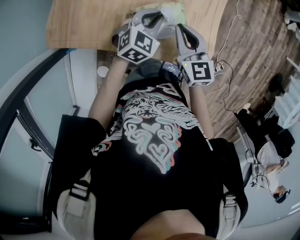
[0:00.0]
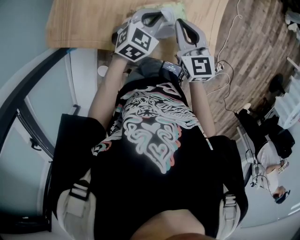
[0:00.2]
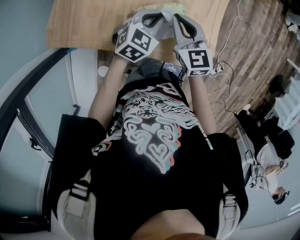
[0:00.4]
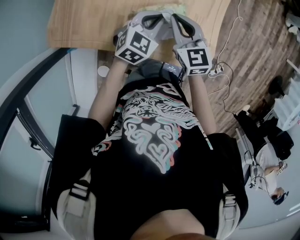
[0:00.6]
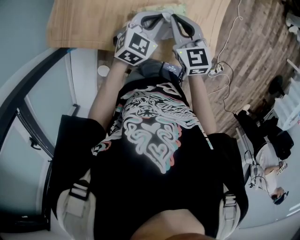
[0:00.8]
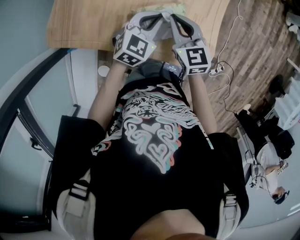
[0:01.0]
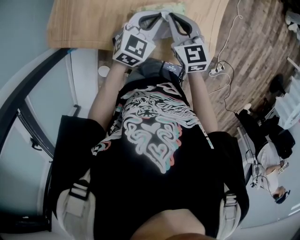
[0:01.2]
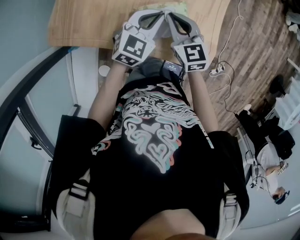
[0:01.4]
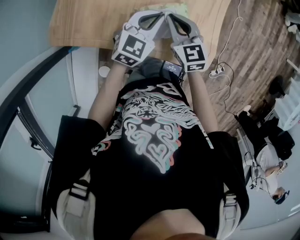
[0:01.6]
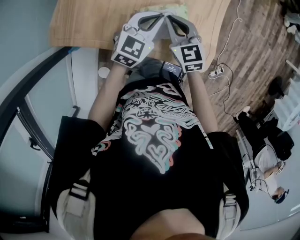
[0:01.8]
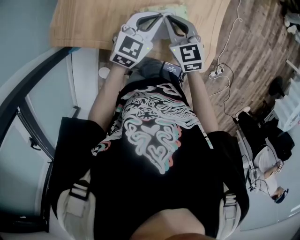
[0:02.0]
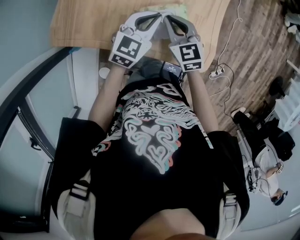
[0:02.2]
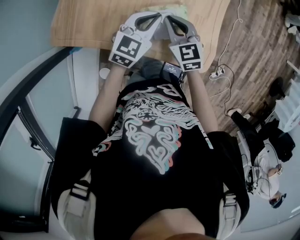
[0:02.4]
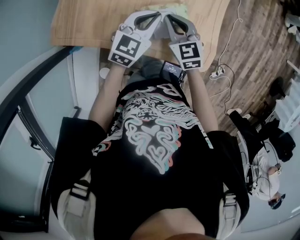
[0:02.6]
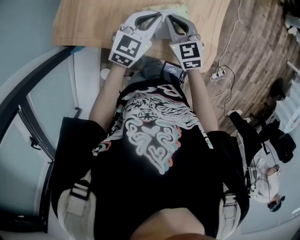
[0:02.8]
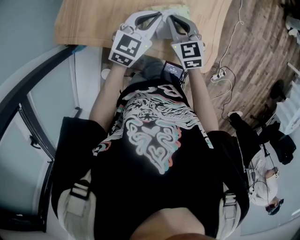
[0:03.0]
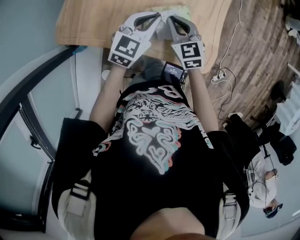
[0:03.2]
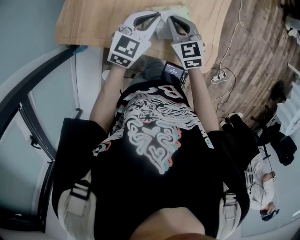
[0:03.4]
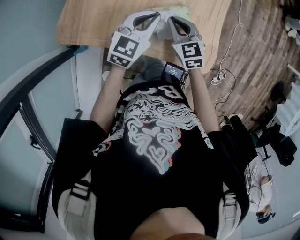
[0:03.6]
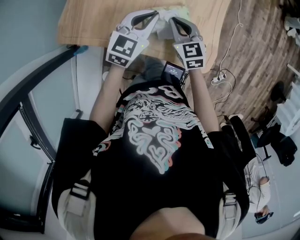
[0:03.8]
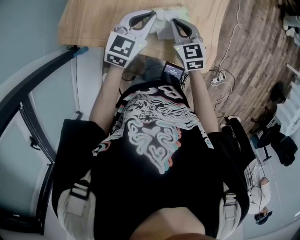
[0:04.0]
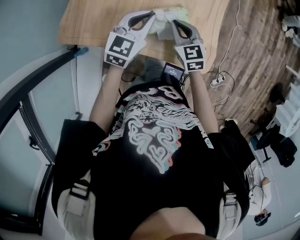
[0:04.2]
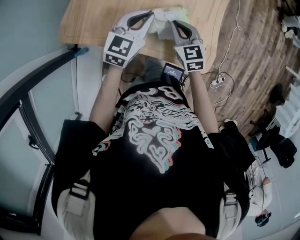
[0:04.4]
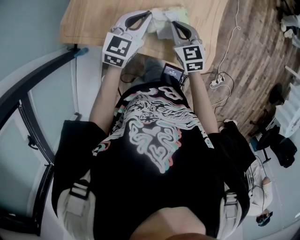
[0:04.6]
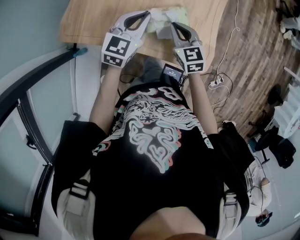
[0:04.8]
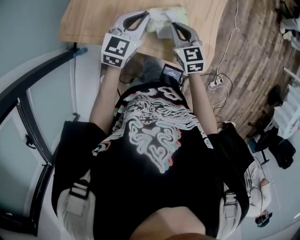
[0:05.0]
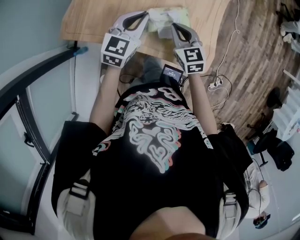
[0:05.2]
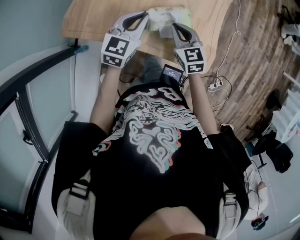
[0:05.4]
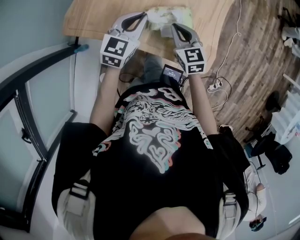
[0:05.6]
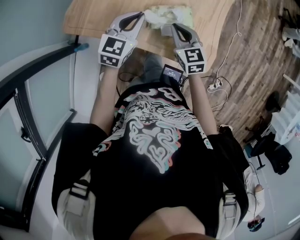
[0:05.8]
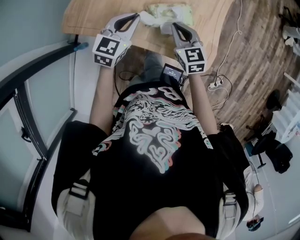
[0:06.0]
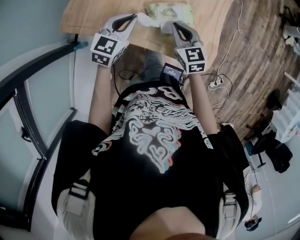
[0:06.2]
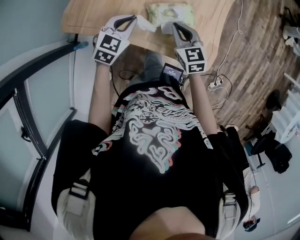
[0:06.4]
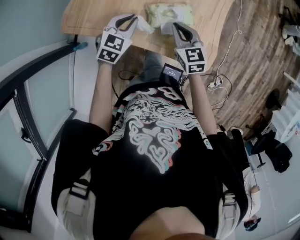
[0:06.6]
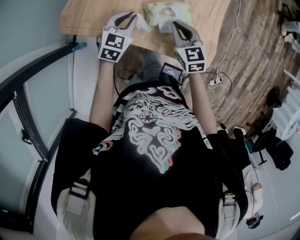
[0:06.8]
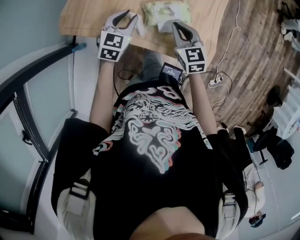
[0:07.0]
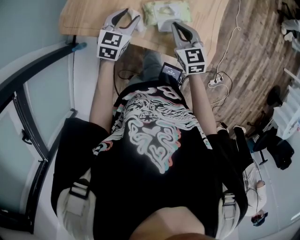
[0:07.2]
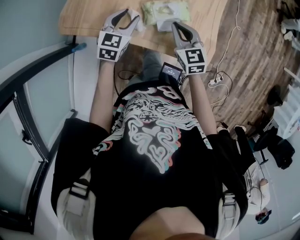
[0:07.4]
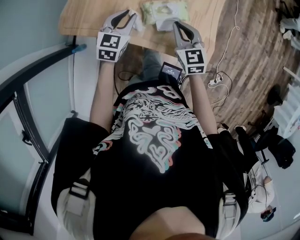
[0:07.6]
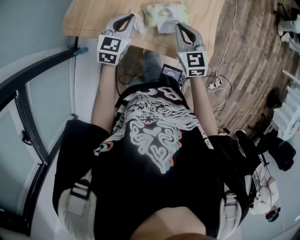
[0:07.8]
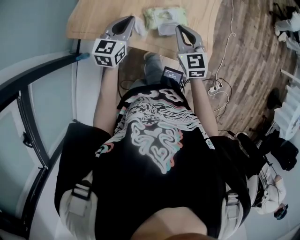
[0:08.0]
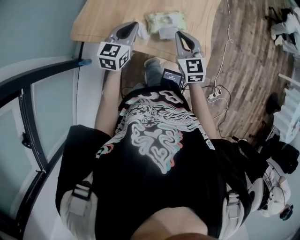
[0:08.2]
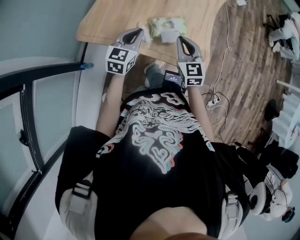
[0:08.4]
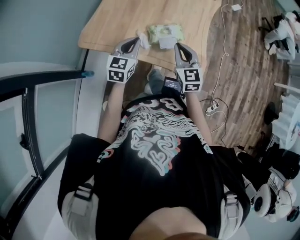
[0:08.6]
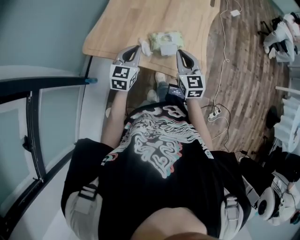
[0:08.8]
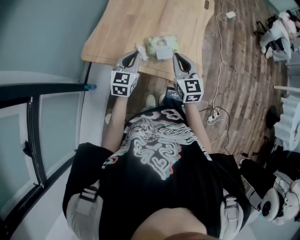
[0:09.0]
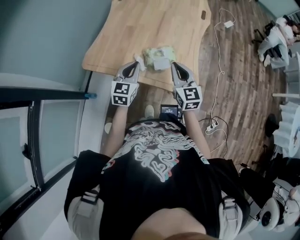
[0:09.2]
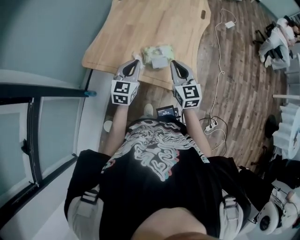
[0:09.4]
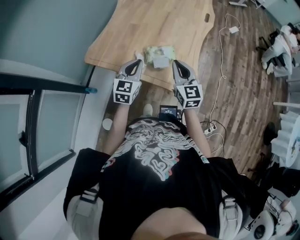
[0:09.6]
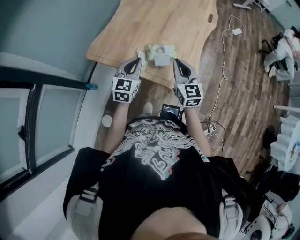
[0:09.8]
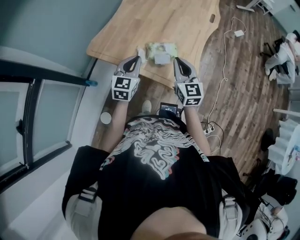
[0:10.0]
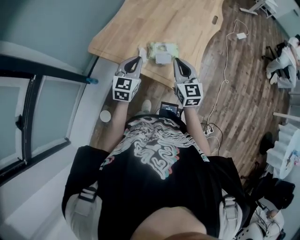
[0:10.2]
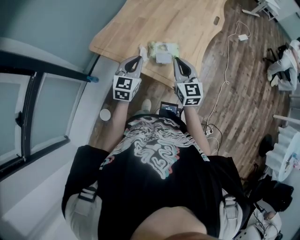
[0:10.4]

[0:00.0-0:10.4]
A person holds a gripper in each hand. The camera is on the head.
0:00.0 to 0:01.4: The right gripper shifts by roughly 5 cm.
0:01.4 to 0:03.0: The grippers stay close to where they were, moving slightly.
0:03.0 to 0:04.4: The left gripper changes place by about 5 cm.
0:04.4 to 0:06.0: The left gripper goes roughly 5 cm to the left.
0:06.0 to 0:07.4: The left gripper moves downward, about 5 cm, and opens its fingers.
0:07.4 to 0:09.0: Both grippers move upward and backward, about 20 cm. The left gripper closes up.
0:09.0 to 0:10.4: The left gripper shifts by about 5 cm.

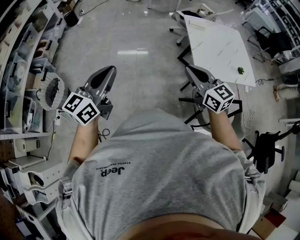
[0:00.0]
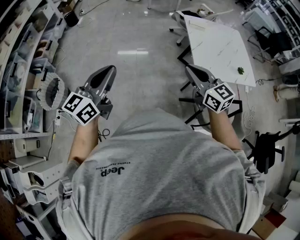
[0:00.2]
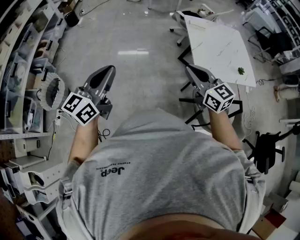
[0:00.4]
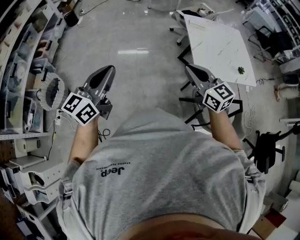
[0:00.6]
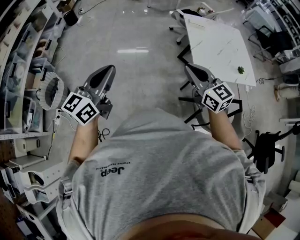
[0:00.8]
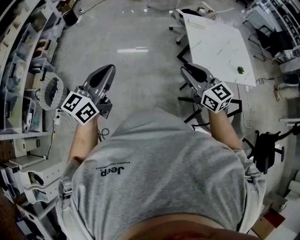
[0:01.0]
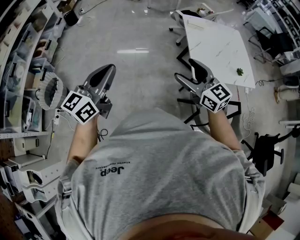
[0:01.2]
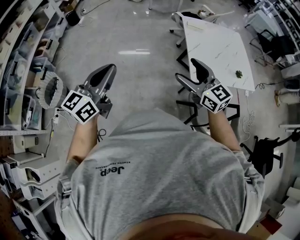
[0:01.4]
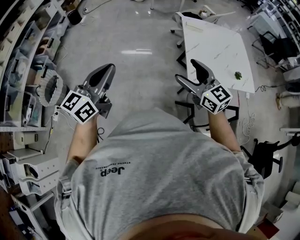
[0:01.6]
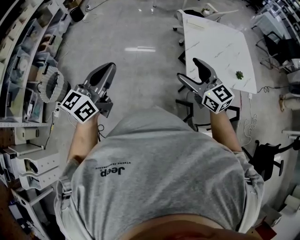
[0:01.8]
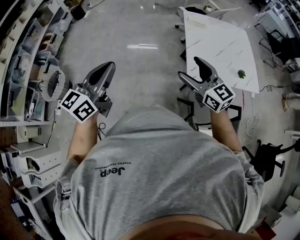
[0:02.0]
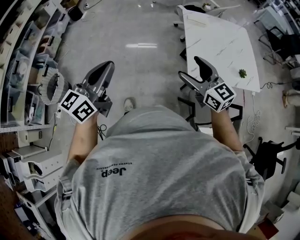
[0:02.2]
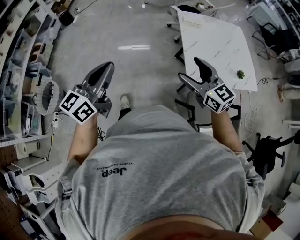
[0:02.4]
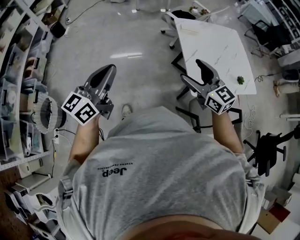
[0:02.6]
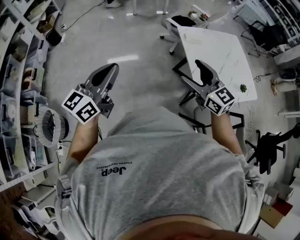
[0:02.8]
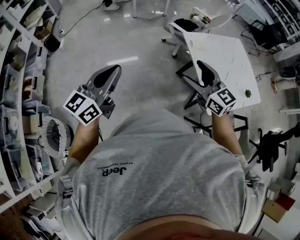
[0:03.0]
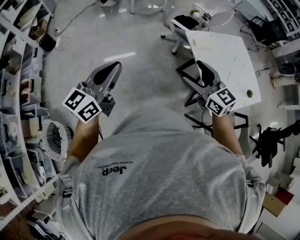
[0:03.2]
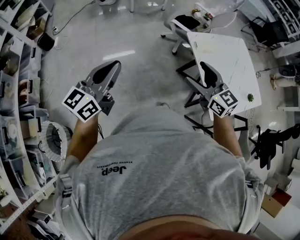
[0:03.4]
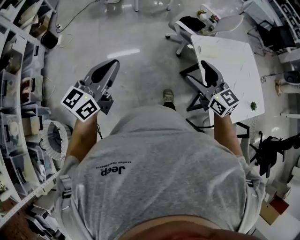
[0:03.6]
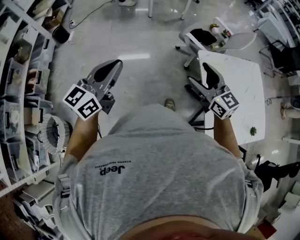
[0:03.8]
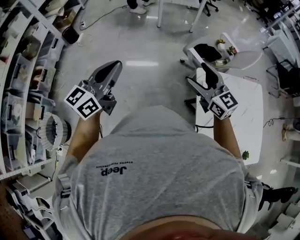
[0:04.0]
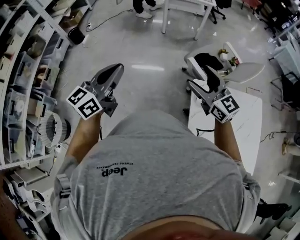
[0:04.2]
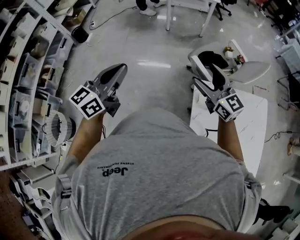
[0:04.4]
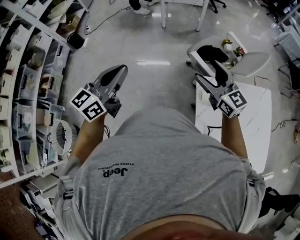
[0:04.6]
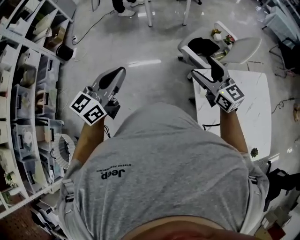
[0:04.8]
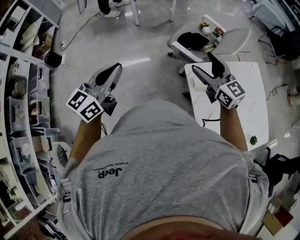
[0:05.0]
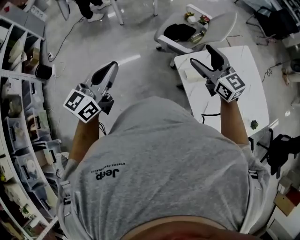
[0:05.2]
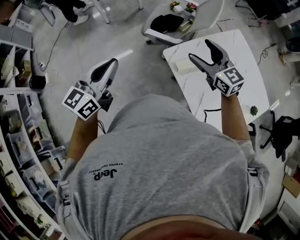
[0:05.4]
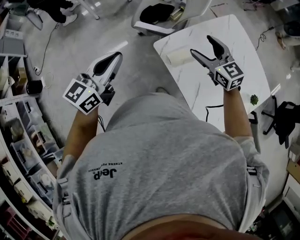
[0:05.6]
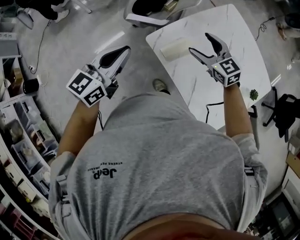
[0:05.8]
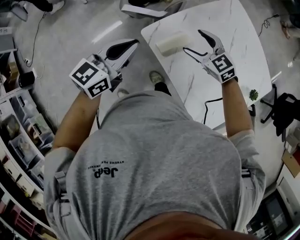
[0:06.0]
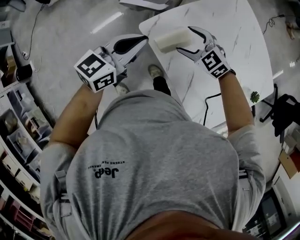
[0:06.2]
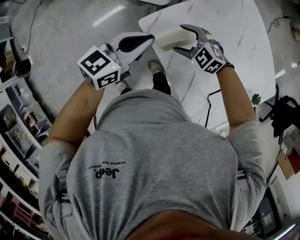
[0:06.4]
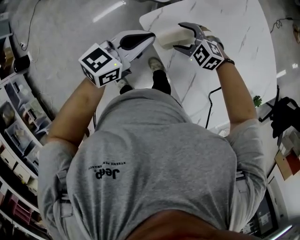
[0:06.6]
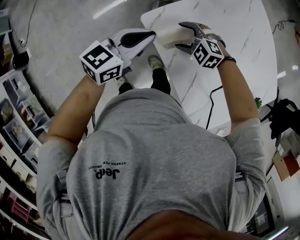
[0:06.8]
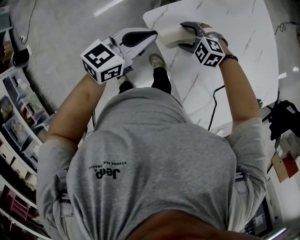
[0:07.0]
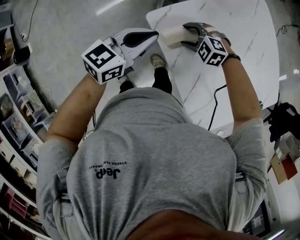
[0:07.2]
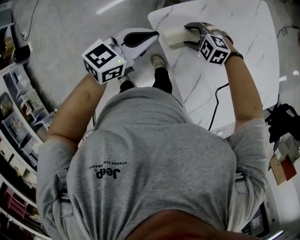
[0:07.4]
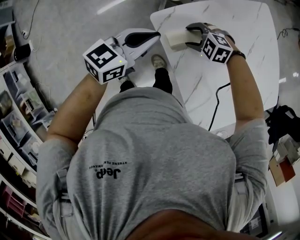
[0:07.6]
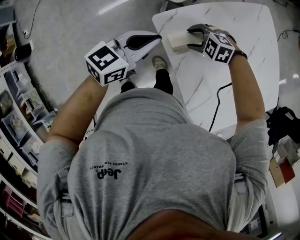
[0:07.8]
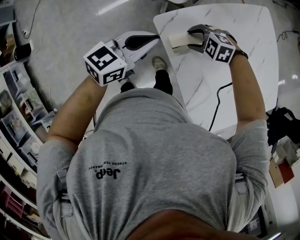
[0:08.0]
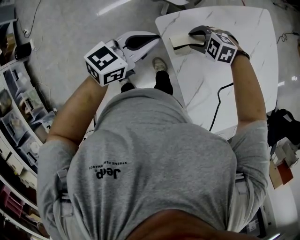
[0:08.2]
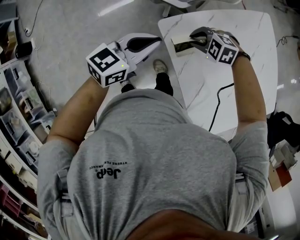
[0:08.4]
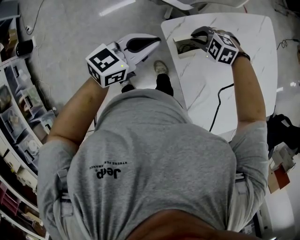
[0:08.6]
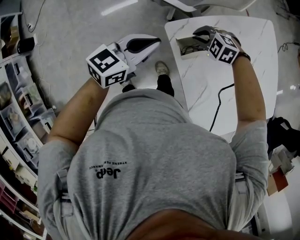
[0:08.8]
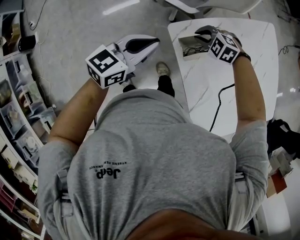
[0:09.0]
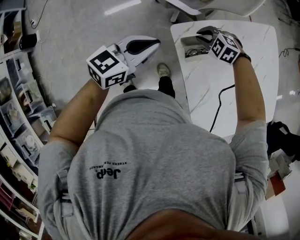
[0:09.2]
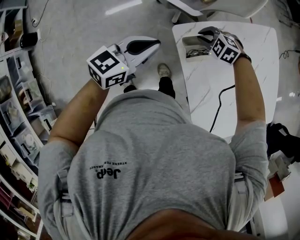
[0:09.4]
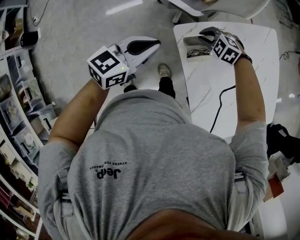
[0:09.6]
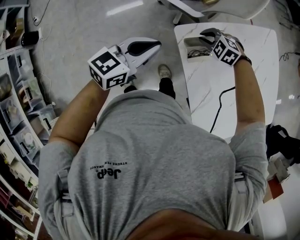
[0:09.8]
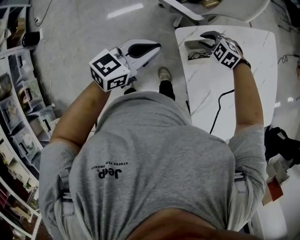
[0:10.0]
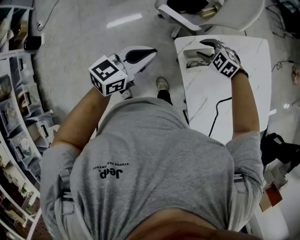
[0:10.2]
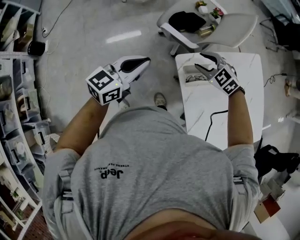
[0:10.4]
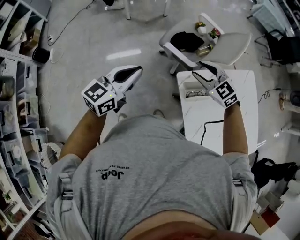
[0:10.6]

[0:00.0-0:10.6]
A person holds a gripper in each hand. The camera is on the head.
0:00.0 to 0:01.6: The two grippers go about 10 cm to the right. The right gripper opens up.
0:01.6 to 0:03.0: The grippers both shift forward by roughly 35 cm.
0:03.0 to 0:04.6: Both grippers move forward, some 40 cm.
0:04.6 to 0:06.0: The left gripper ends up about 35 cm from where it was, and swivels some 50 degrees. Meanwhile the right gripper changes place by approximately 30 cm, and turns by some 40 degrees.
0:06.0 to 0:07.6: The right gripper goes approximately 15 cm downward, and changes its angle by roughly 50 degrees, while the left gripper shifts some 10 cm downward.
0:07.6 to 0:09.0: The left gripper moves some 5 cm. The right gripper changes place by approximately 5 cm, and closes its fingers.
0:09.0 to 0:10.6: The right gripper moves upward, some 25 cm, changes its angle by some 30 degrees, and opens its fingers. Meanwhile the left gripper moves about 20 cm, and swivels approximately 20 degrees.

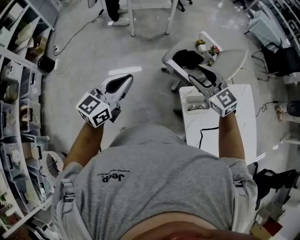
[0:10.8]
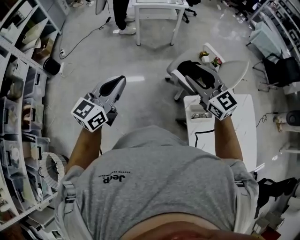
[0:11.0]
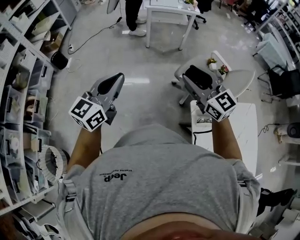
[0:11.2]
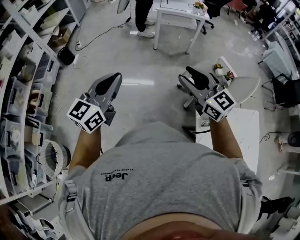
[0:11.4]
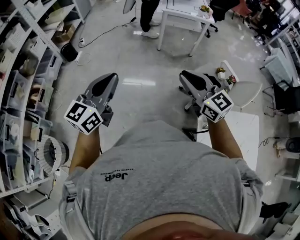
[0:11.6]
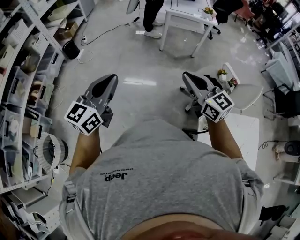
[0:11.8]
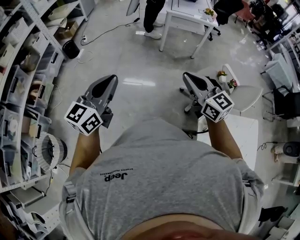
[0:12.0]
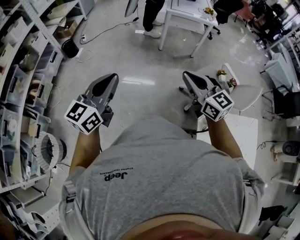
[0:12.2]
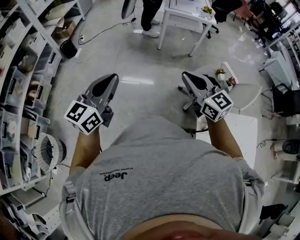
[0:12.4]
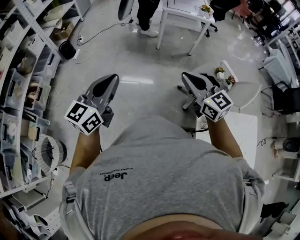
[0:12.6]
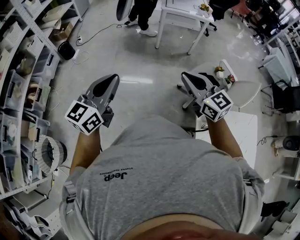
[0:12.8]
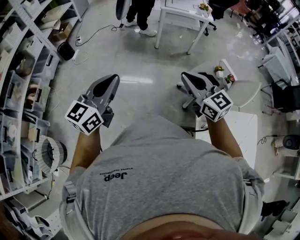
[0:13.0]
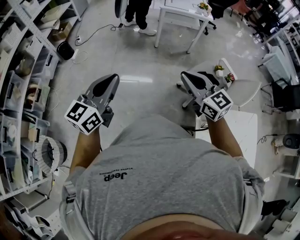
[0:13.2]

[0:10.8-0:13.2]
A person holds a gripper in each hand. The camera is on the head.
0:10.8 to 0:12.0: The grippers both shift to the left by about 20 cm. The left gripper swivels about 30 degrees, while the right gripper turns by approximately 20 degrees, and closes.
0:12.0 to 0:13.2: There are only small adjustments of the grippers.
